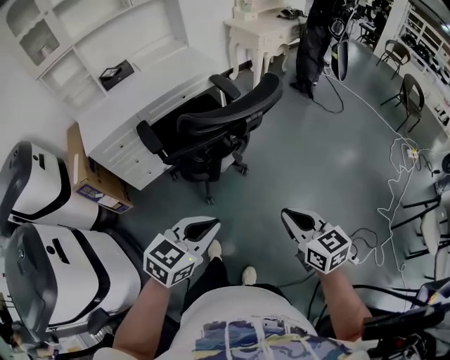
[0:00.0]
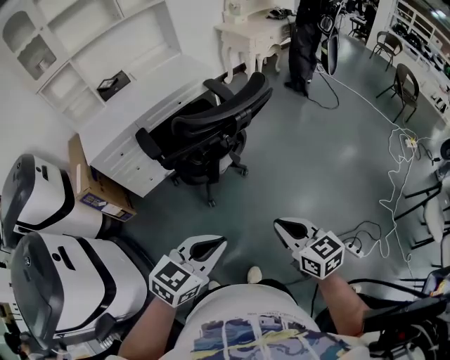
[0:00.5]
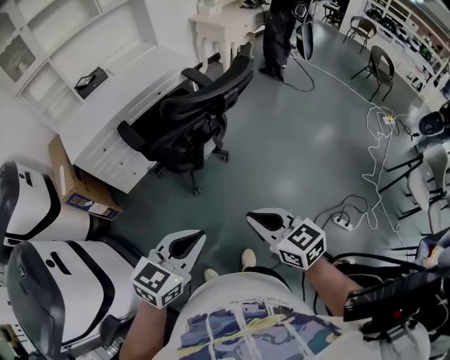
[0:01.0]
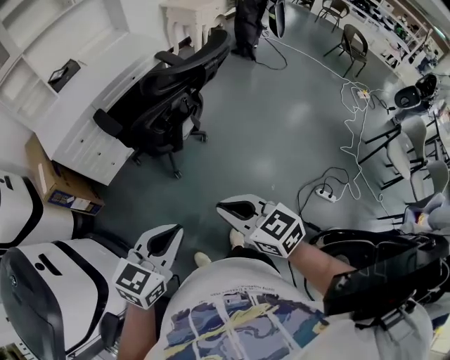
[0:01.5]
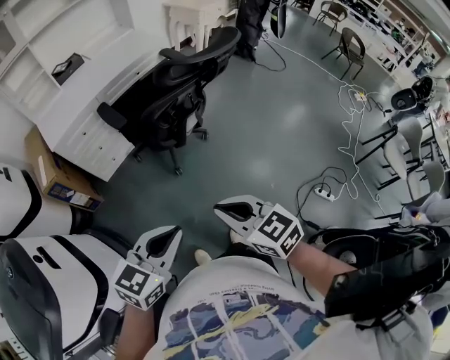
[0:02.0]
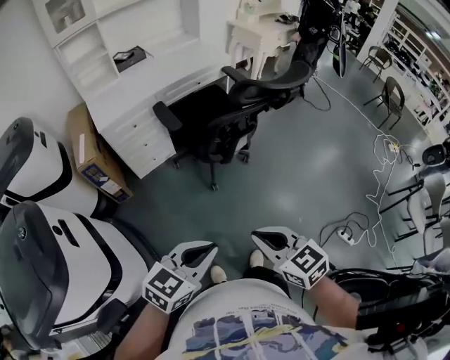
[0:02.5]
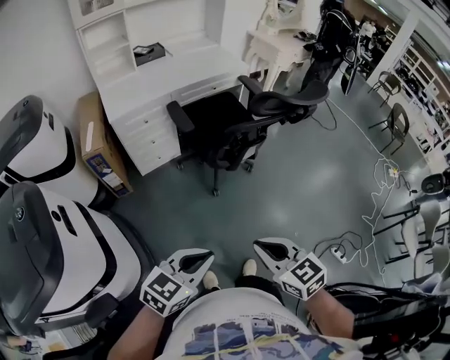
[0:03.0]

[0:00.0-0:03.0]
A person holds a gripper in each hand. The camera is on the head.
0.0 to 1.5 s: The left gripper heads backward and to the left, covering approximately 15 cm. The right gripper travels to the left and backward by about 20 cm.
1.5 to 3.0 s: The grippers both shift to the left and backward by roughly 10 cm.

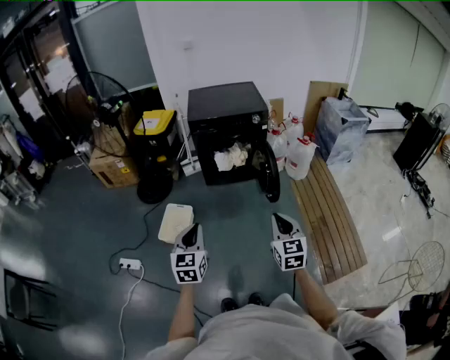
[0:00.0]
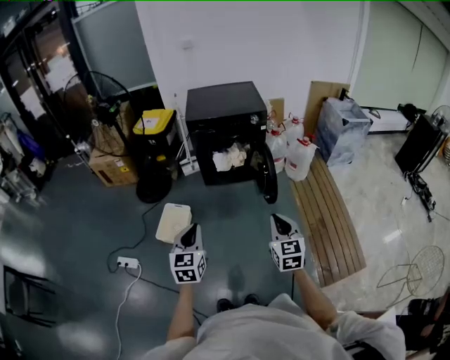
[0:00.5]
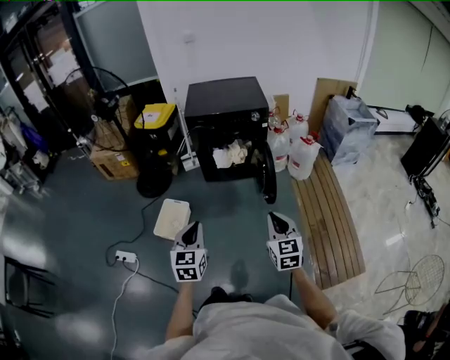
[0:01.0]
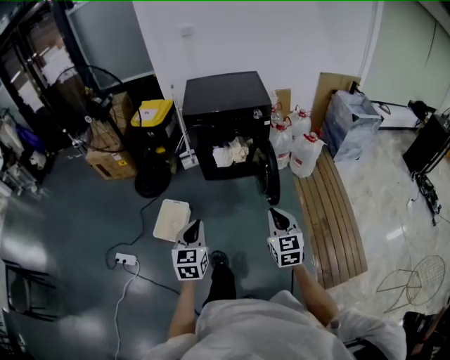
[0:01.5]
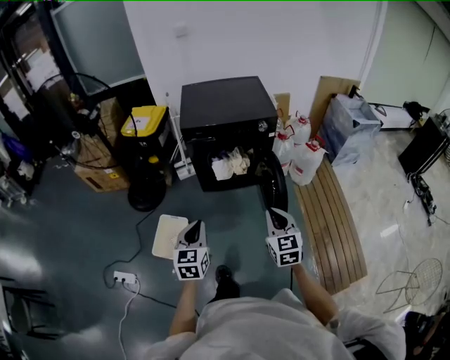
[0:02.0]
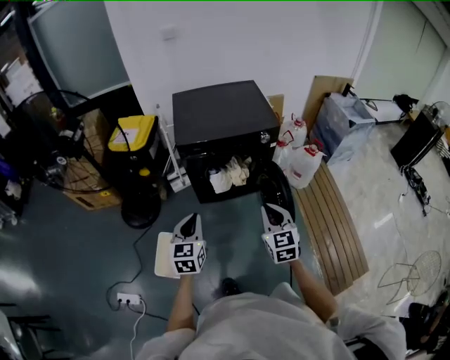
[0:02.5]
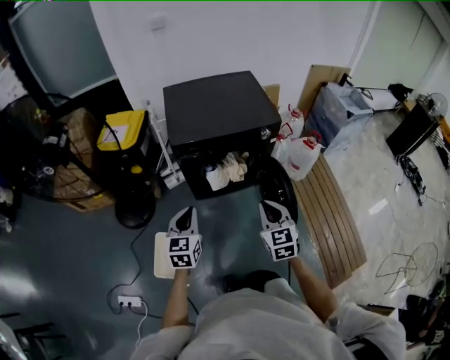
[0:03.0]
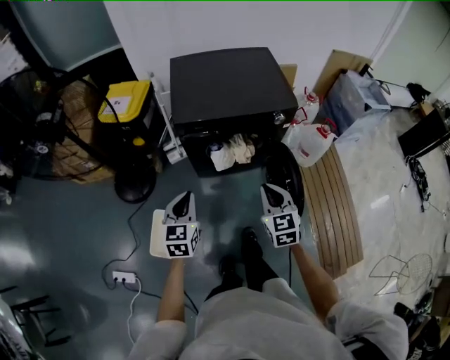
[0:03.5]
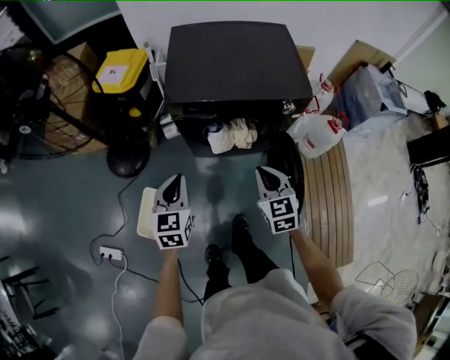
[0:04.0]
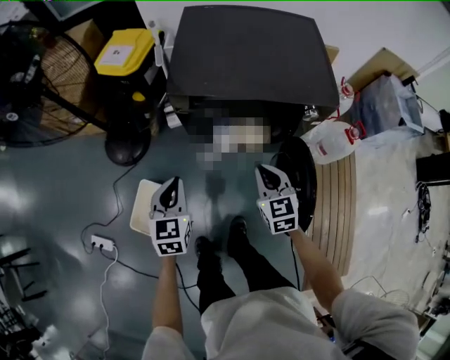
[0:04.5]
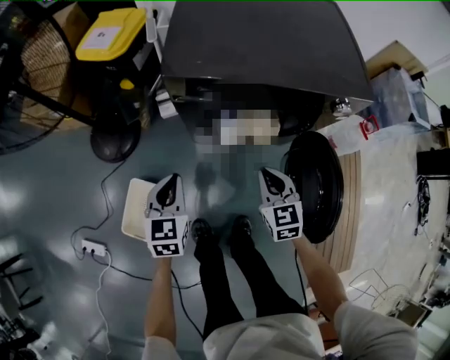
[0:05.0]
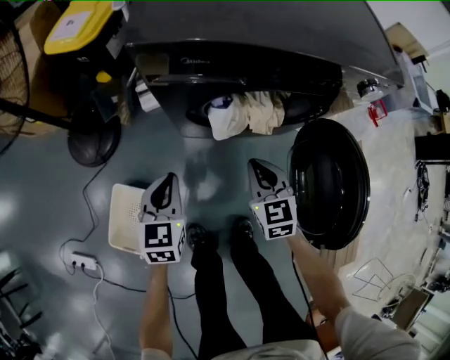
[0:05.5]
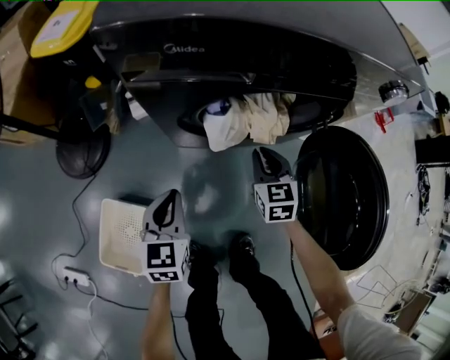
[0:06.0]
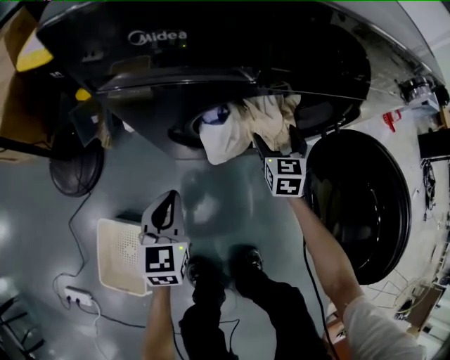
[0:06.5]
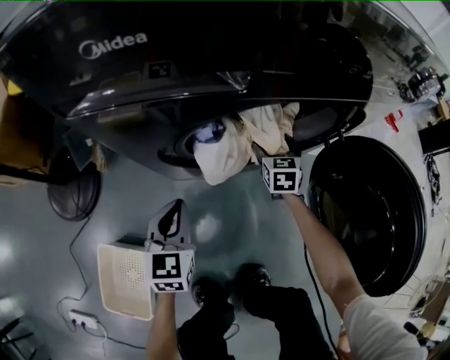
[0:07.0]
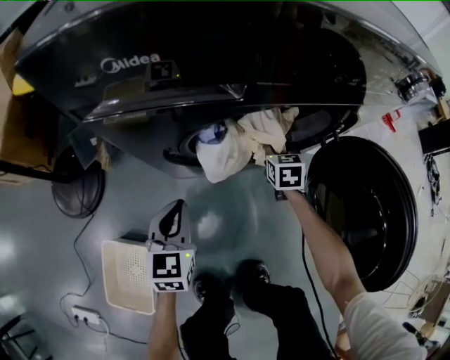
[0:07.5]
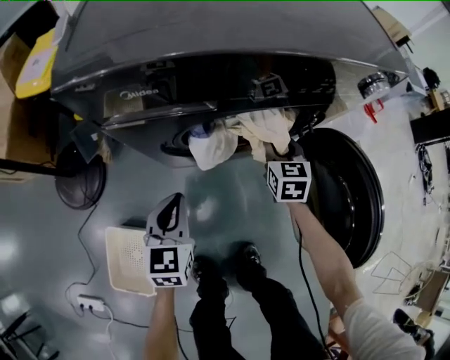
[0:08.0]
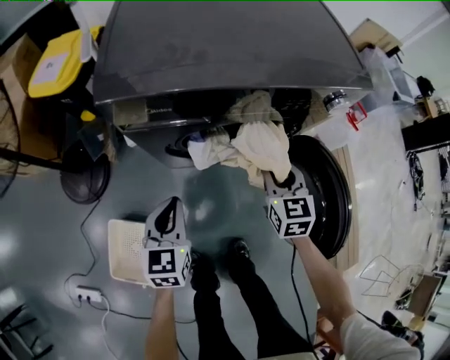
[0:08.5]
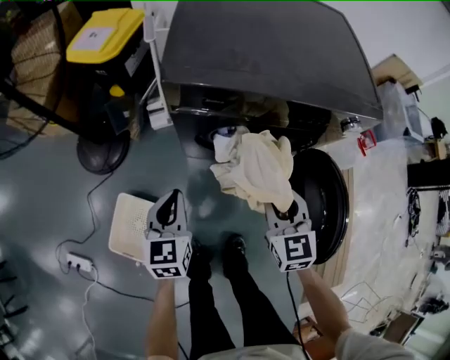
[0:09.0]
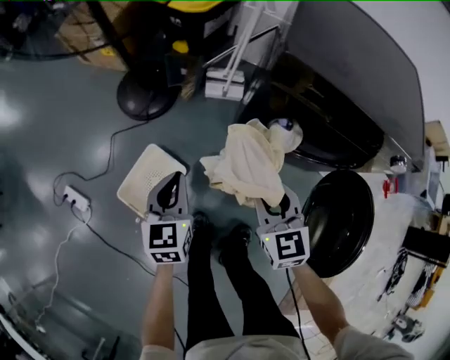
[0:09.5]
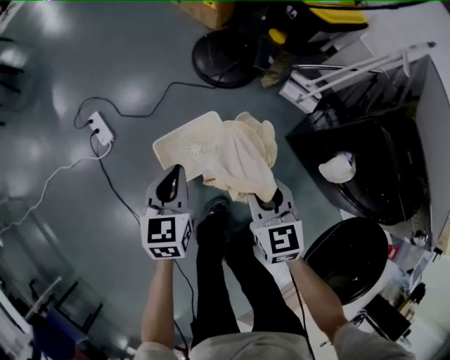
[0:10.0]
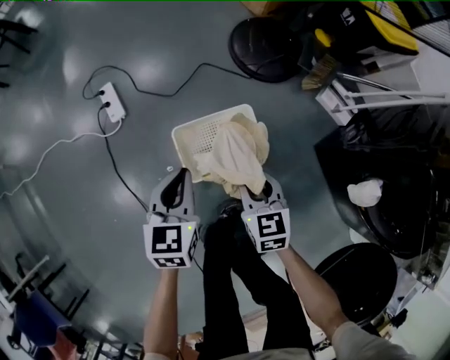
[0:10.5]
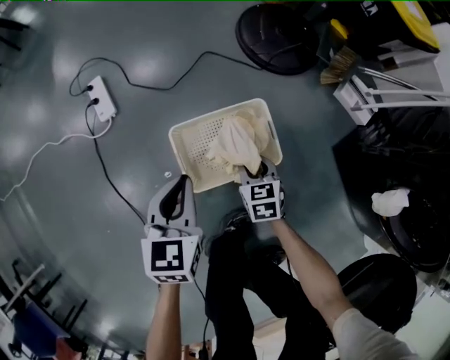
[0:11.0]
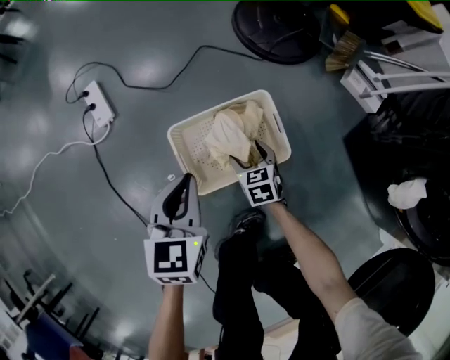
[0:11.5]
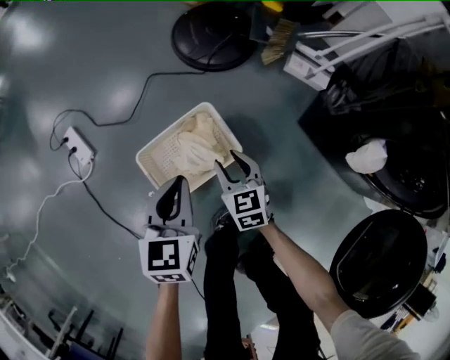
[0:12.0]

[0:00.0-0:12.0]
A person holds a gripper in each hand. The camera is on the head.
0.0 to 2.0 s: The two grippers go some 25 cm forward.
2.0 to 4.0 s: Both grippers move forward, some 35 cm.
4.0 to 6.0 s: The right gripper goes roughly 50 cm downward and forward. Meanwhile the left gripper heads downward, covering approximately 40 cm.
6.0 to 8.0 s: The right gripper heads forward and to the right, covering some 10 cm, travels downward and back again, approximately 15 cm each way, and opens, then closes once more; the left gripper travels forward by roughly 5 cm, and reaches approximately 10 cm downward, then returns.
8.0 to 10.0 s: The two grippers travel together, some 60 cm. The left gripper turns by some 60 degrees. Meanwhile the right gripper rotates roughly 70 degrees.
10.0 to 12.0 s: The left gripper heads downward, covering some 15 cm. The right gripper heads downward, covering approximately 30 cm.

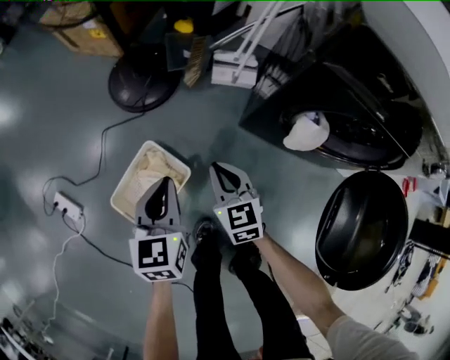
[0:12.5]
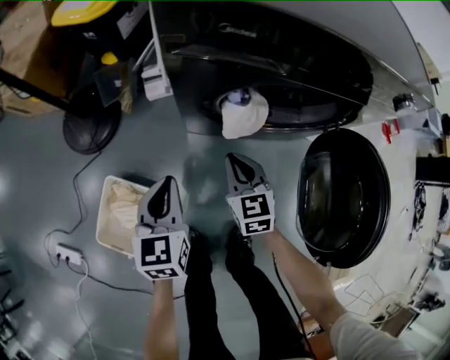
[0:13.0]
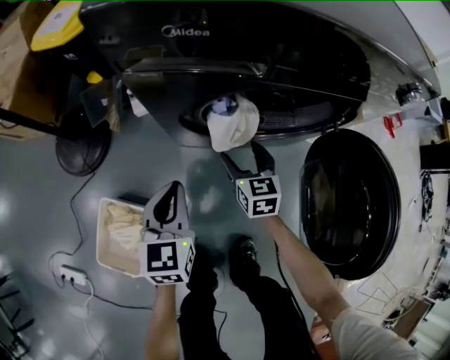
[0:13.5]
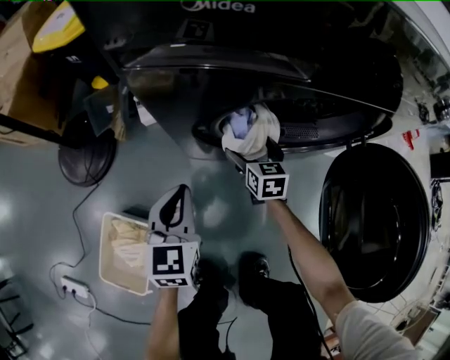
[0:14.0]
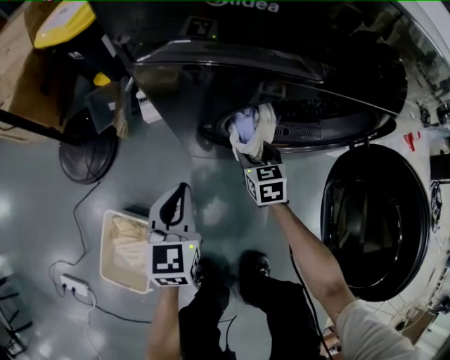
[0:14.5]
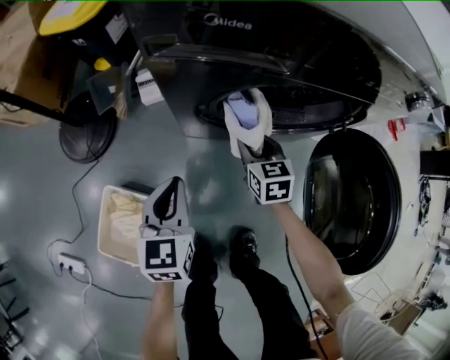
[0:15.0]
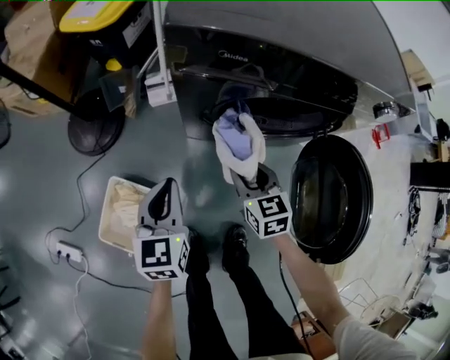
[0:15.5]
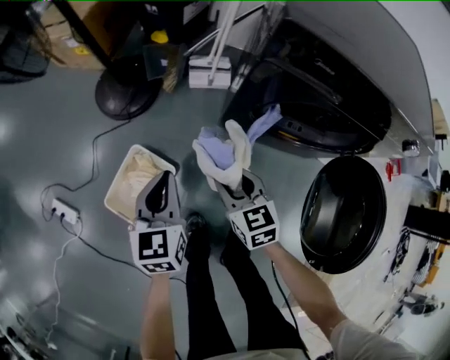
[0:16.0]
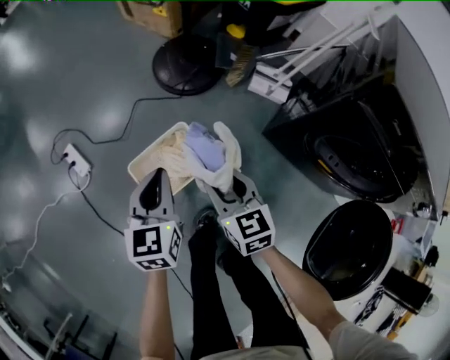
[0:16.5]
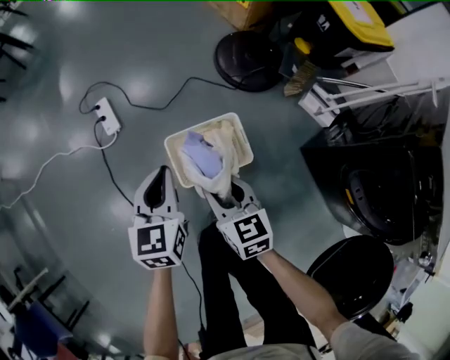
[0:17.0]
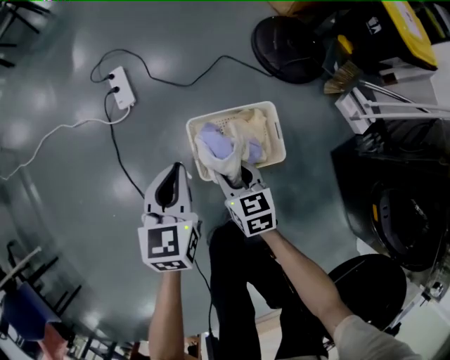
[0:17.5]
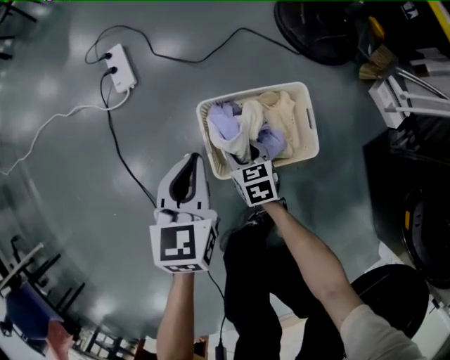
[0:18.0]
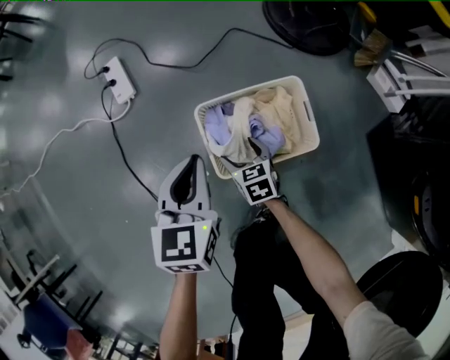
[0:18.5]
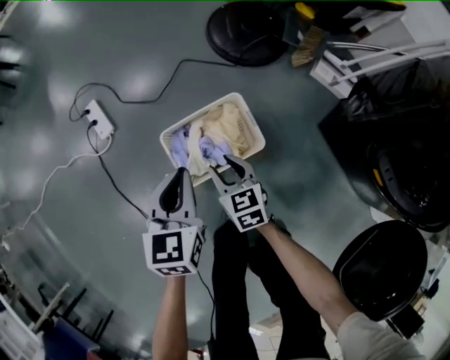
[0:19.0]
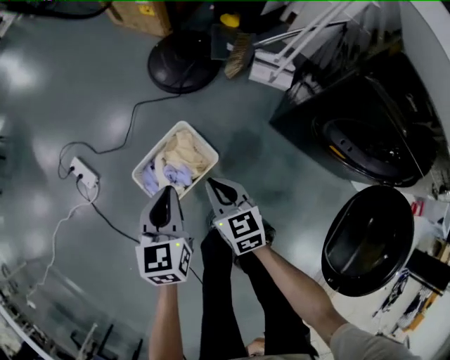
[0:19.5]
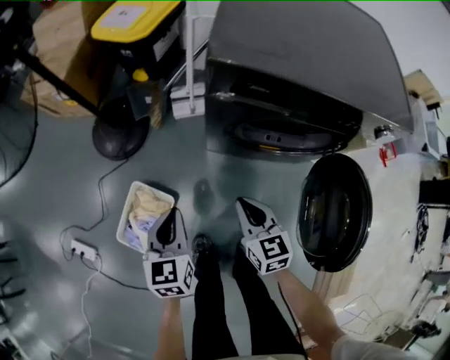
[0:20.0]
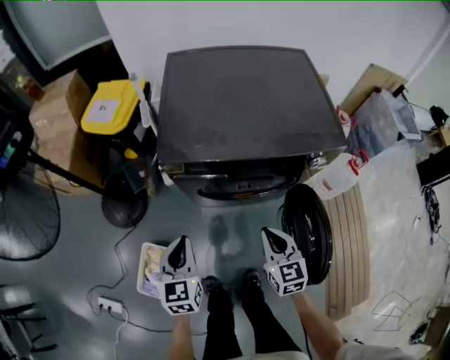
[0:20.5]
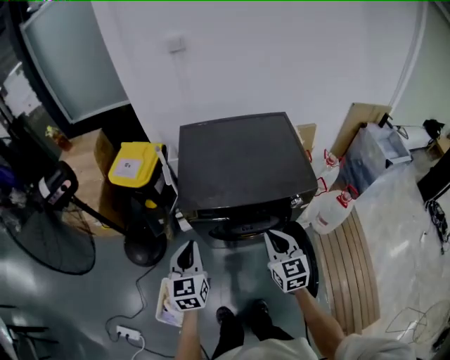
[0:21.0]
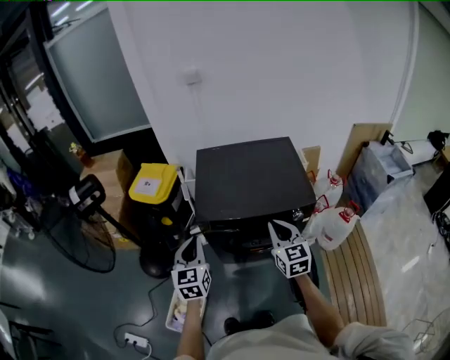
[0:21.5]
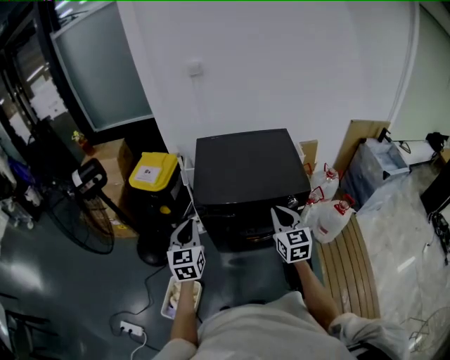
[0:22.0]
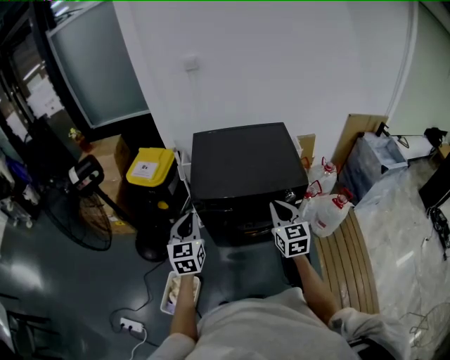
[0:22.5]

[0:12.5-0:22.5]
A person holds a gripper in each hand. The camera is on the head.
12.5 to 14.5 s: The right gripper changes place by approximately 40 cm, turns by about 30 degrees, and opens. The left gripper ends up some 30 cm from where it was, and swivels approximately 30 degrees.
14.5 to 16.5 s: The pair of grippers is taken about 50 cm. The right gripper turns by about 50 degrees, while the left gripper turns by about 40 degrees.
16.5 to 18.5 s: The right gripper heads downward, covering approximately 40 cm, swivels roughly 30 degrees, and opens up; the left gripper heads downward, covering approximately 25 cm.
18.5 to 20.5 s: The pair of grippers is taken roughly 60 cm. The left gripper swivels roughly 60 degrees. Meanwhile the right gripper changes its angle by about 80 degrees, and closes.
20.5 to 22.5 s: The two grippers go approximately 30 cm upward.

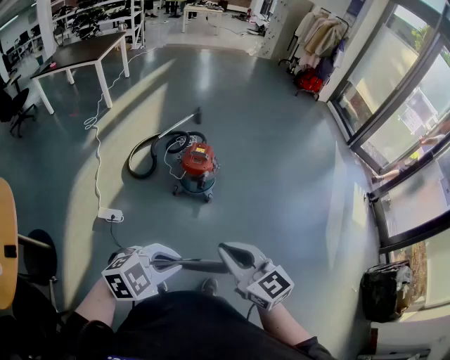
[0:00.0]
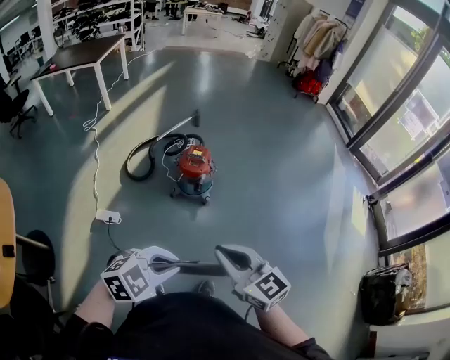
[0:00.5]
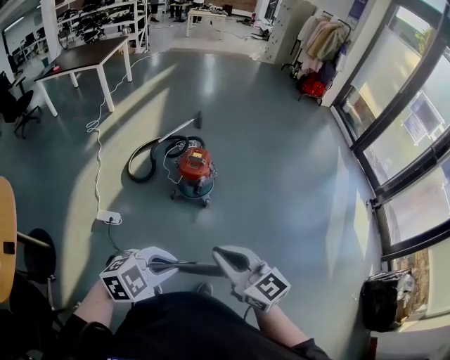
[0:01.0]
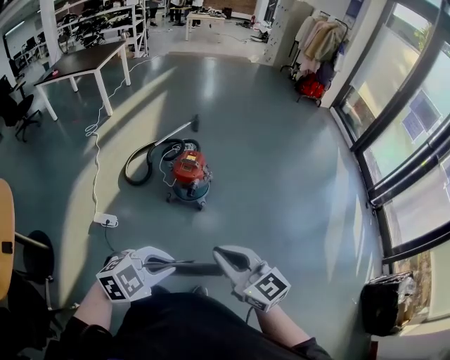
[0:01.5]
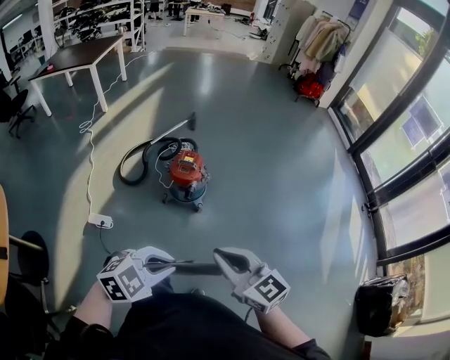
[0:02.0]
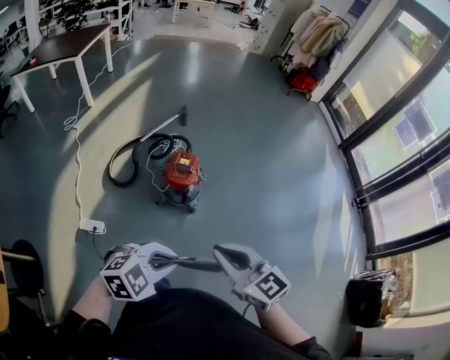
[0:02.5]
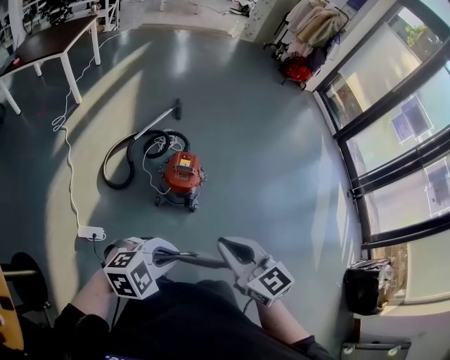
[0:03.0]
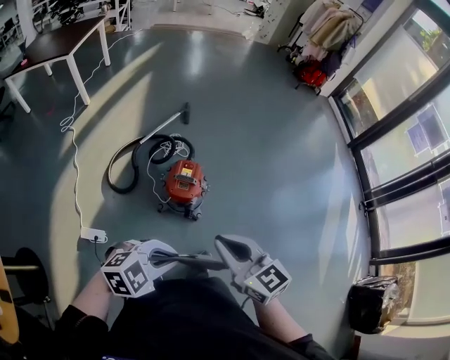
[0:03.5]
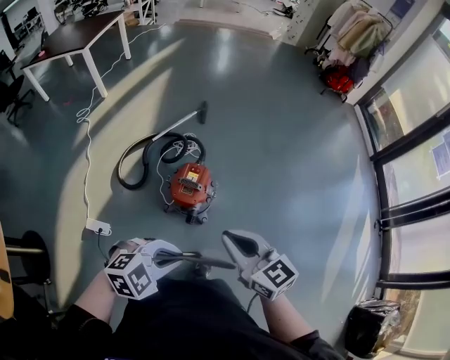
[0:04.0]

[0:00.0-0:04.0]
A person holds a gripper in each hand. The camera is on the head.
0.0 to 2.0 s: Both grippers move forward and to the right, some 10 cm.
2.0 to 4.0 s: The grippers both shift forward by some 30 cm.
